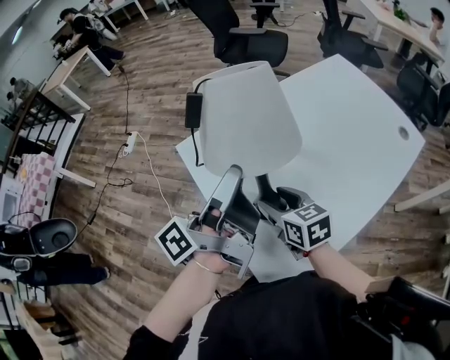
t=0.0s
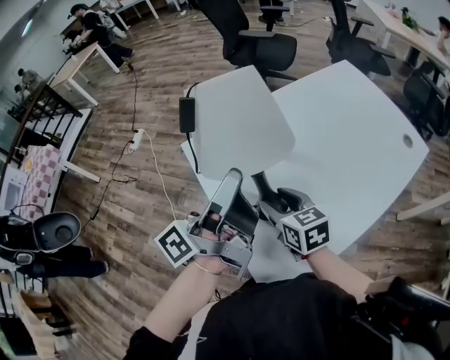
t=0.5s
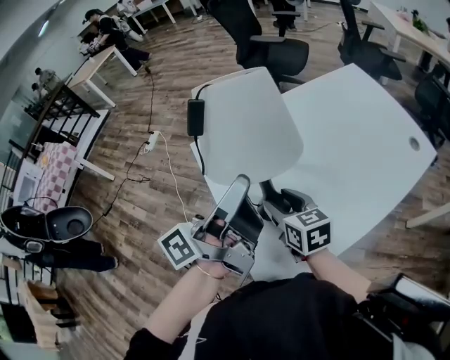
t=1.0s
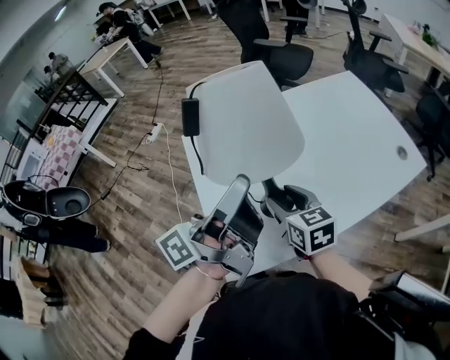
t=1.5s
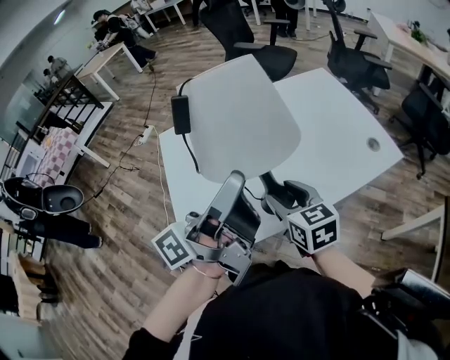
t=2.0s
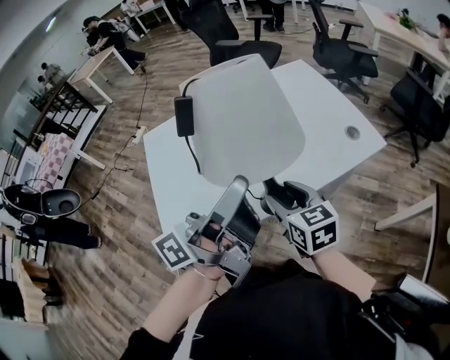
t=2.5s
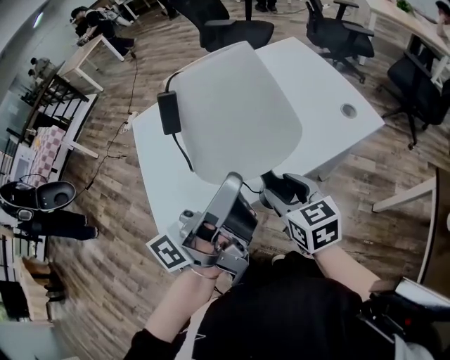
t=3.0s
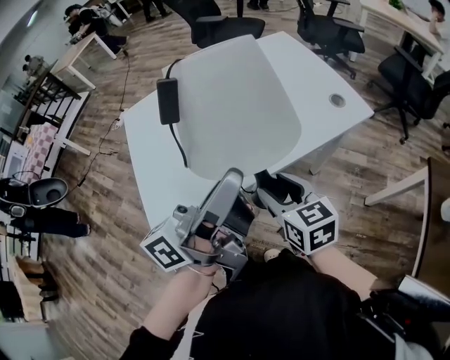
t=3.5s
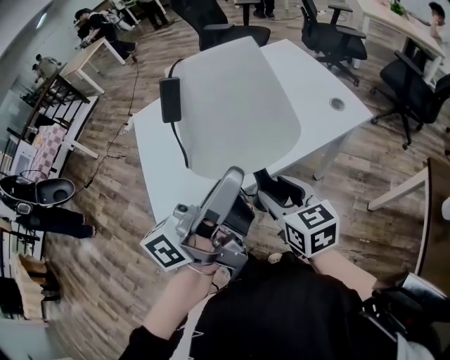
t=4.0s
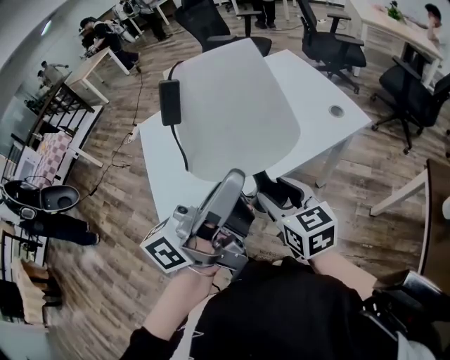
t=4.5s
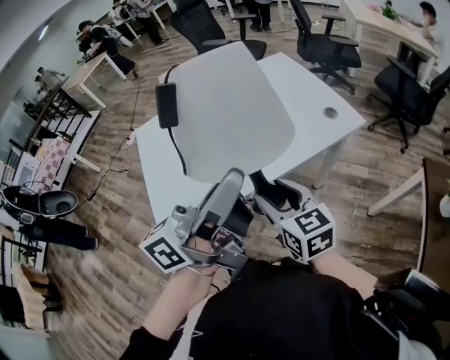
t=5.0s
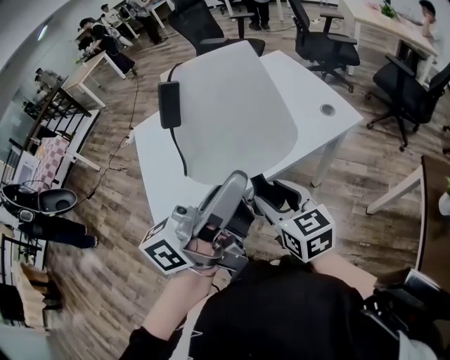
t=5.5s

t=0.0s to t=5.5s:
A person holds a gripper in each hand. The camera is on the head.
t=0.0s to t=2.0s: The right gripper heads to the right, covering roughly 25 cm. Meanwhile the left gripper heads to the right and backward, covering about 25 cm.
t=2.0s to t=3.5s: The two grippers go approximately 15 cm to the right and backward.
t=3.5s to t=5.5s: The right gripper changes place by approximately 5 cm. The left gripper changes place by about 5 cm.

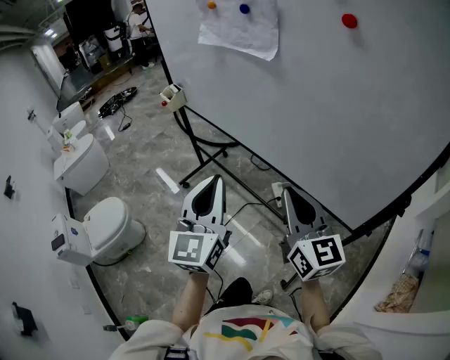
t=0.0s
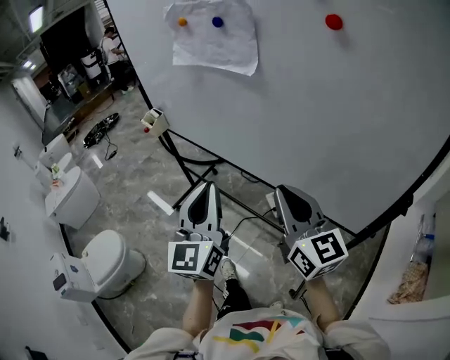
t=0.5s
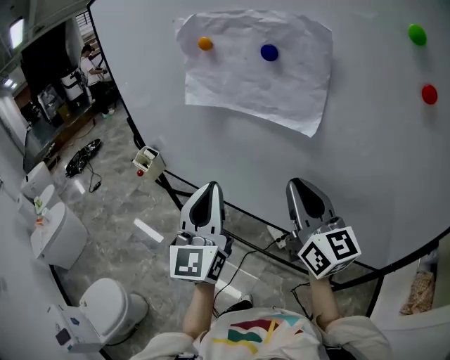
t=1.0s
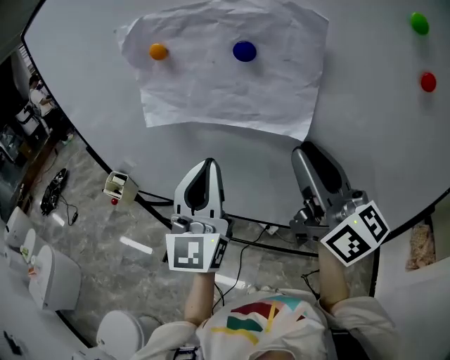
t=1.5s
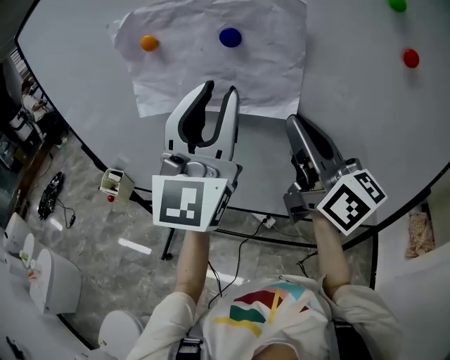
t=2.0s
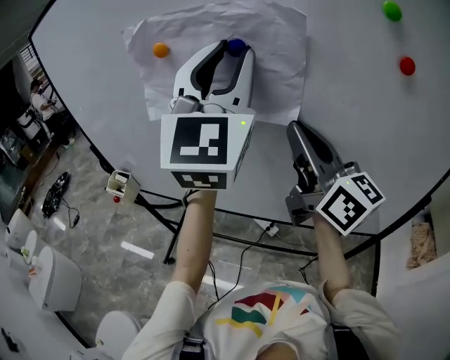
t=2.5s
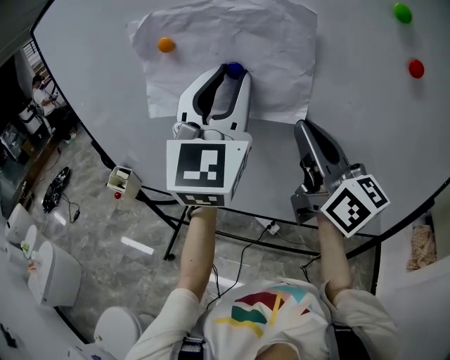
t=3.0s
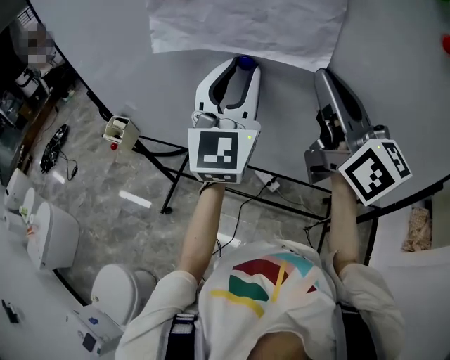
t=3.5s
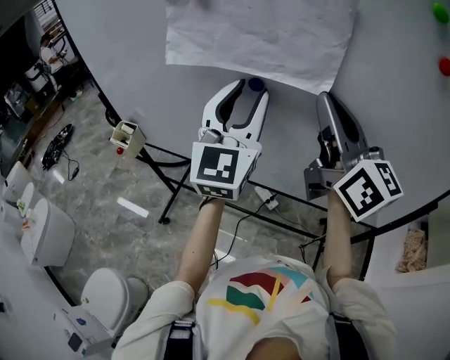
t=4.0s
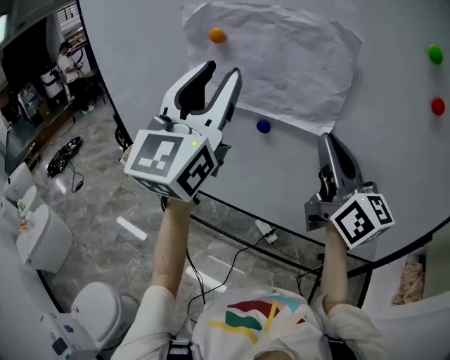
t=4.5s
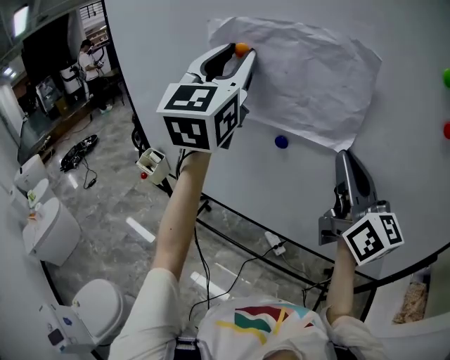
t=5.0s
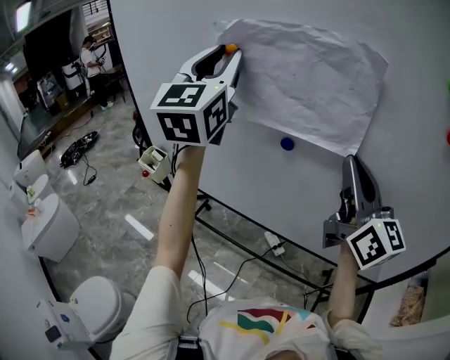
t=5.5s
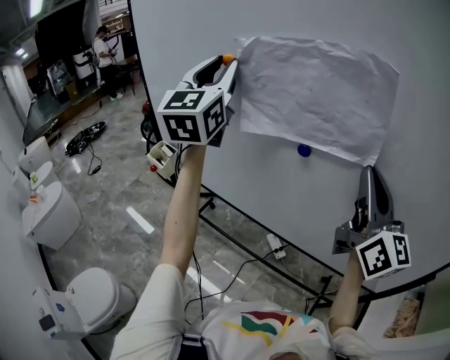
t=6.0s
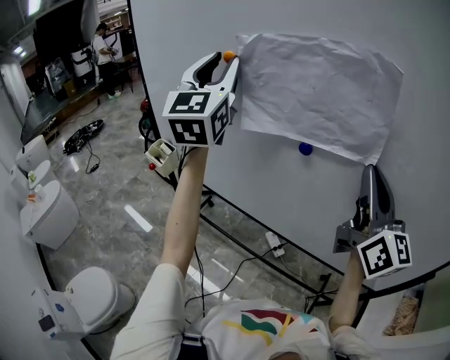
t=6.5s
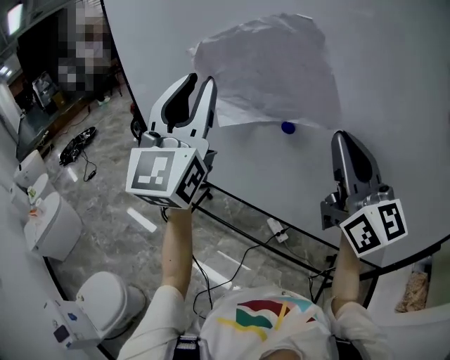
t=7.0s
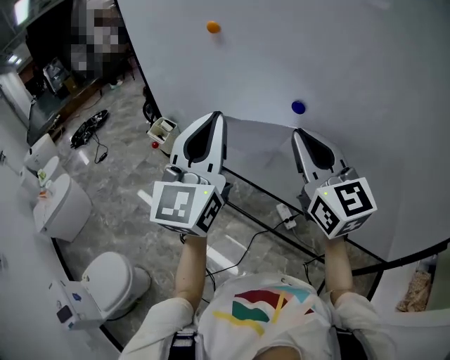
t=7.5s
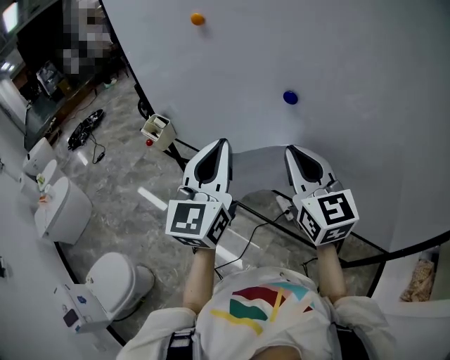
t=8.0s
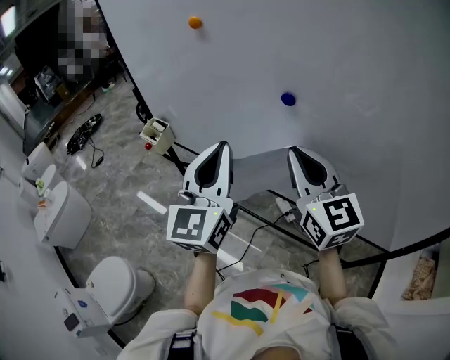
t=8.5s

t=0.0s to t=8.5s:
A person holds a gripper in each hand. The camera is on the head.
t=0.0s to t=2.0s: The right gripper changes place by approximately 35 cm, and changes its angle by approximately 30 degrees. The left gripper ends up approximately 35 cm from where it was, changes its angle by about 50 degrees, and opens its fingers.
t=2.0s to t=4.0s: The left gripper moves downward, some 10 cm.
t=4.0s to t=6.5s: The left gripper travels to the left, upward and forward by about 25 cm.
t=6.5s to t=8.5s: The left gripper travels downward and backward by approximately 25 cm, and closes; the right gripper goes about 15 cm downward and to the left, and changes its angle by about 20 degrees.

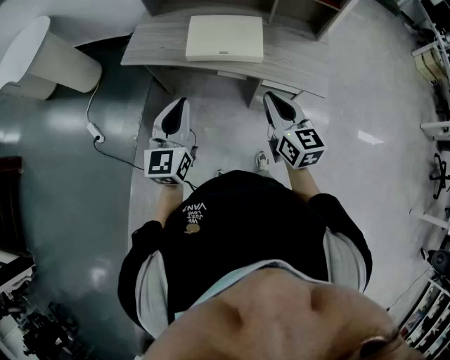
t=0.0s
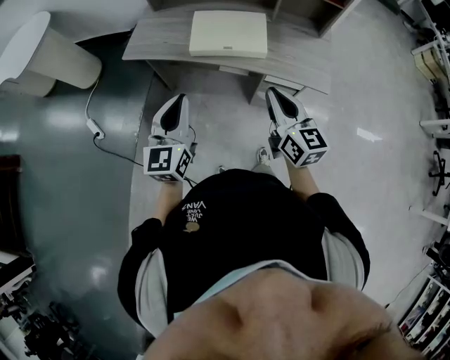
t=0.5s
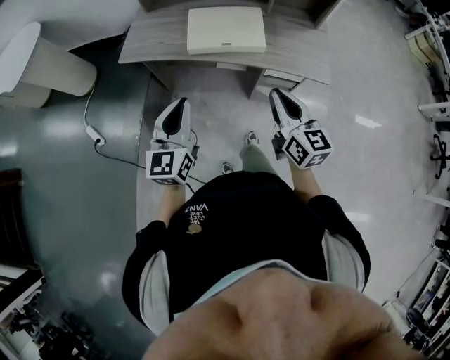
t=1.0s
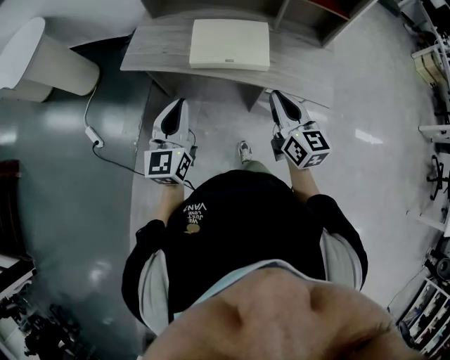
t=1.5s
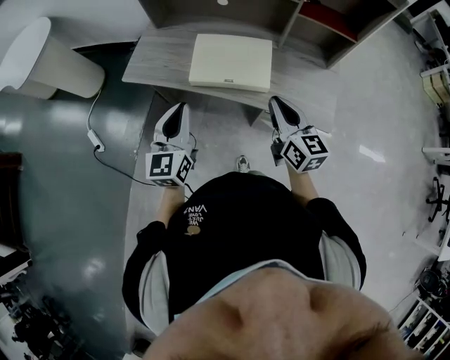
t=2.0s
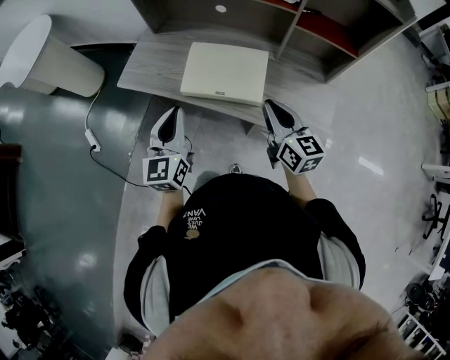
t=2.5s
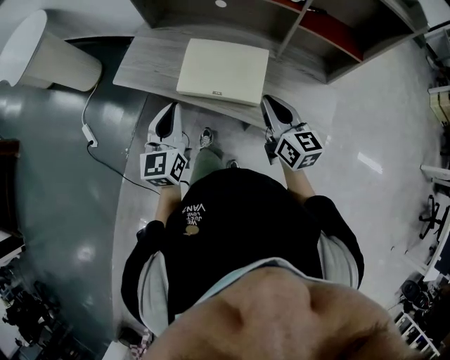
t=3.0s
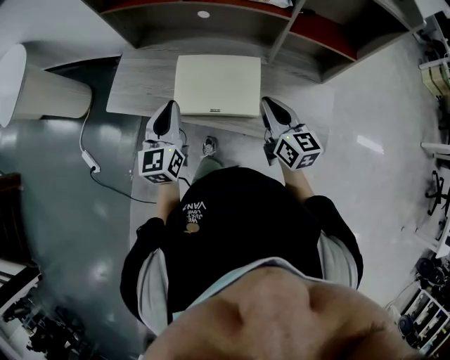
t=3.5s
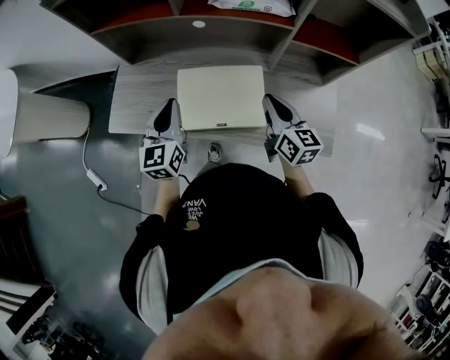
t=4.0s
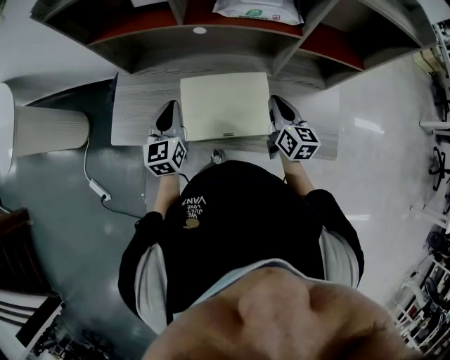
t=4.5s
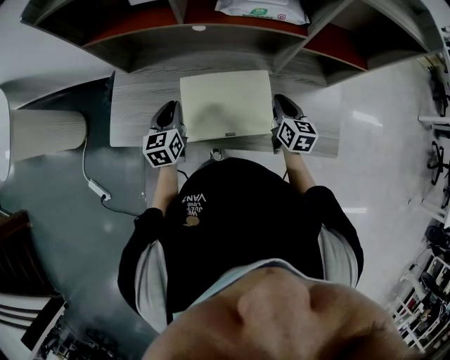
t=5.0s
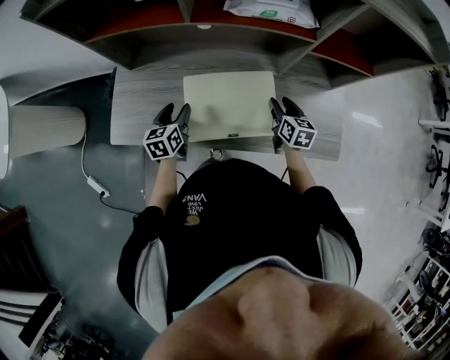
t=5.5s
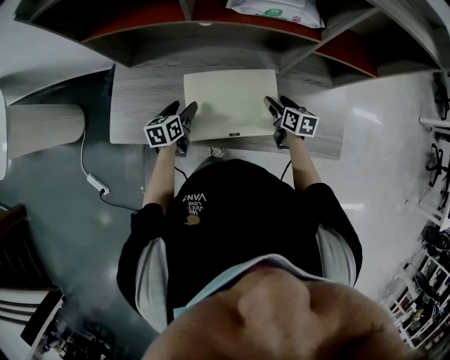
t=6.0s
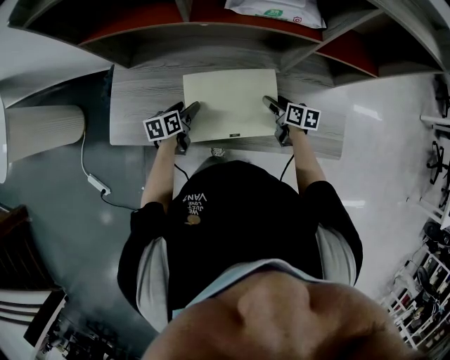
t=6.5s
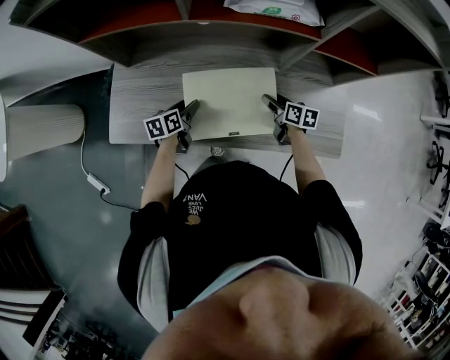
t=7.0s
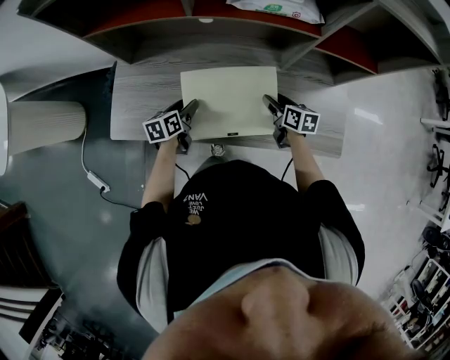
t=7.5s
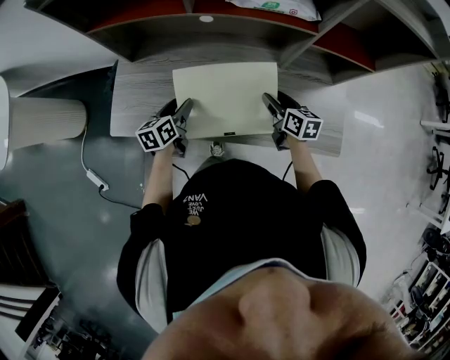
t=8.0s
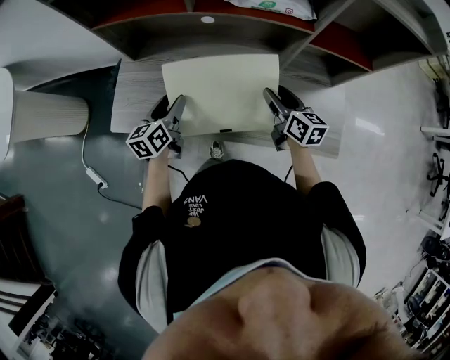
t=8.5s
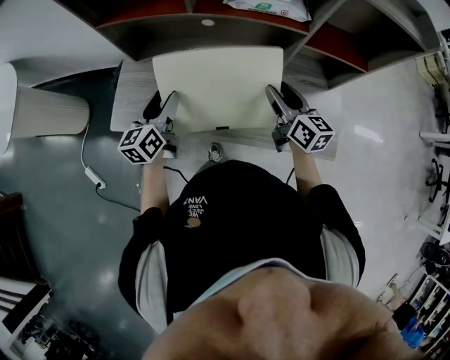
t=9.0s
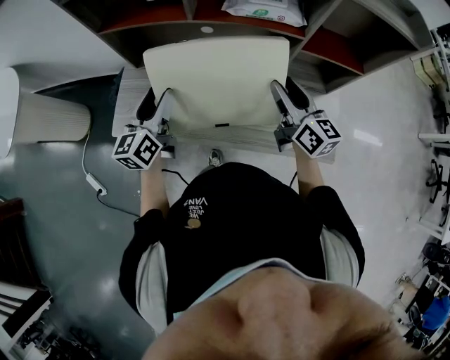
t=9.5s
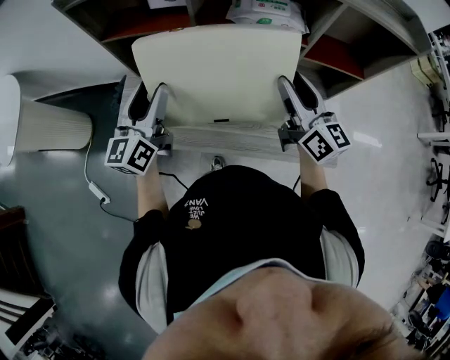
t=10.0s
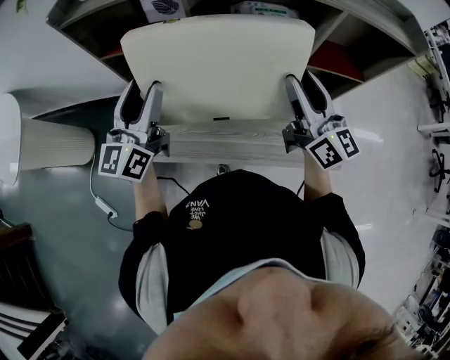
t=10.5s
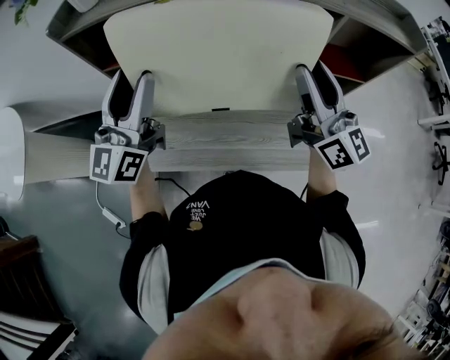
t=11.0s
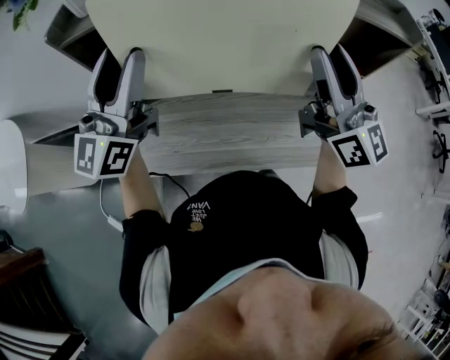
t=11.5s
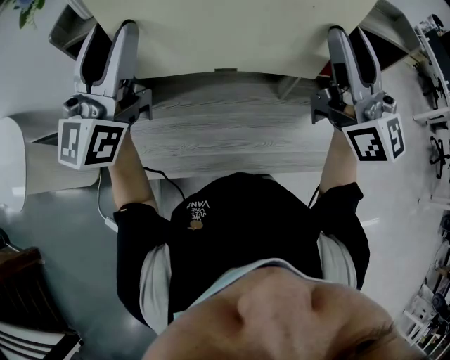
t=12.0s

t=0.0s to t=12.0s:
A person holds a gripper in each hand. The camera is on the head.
t=0.0s to t=2.0s: The two grippers go approximately 10 cm forward.
t=2.0s to t=4.0s: Both grippers move forward, roughly 20 cm.
t=4.0s to t=6.0s: The two grippers go some 20 cm downward. The left gripper swivels approximately 40 degrees, and opens its fingers. Meanwhile the right gripper turns by roughly 30 degrees, and opens.
t=6.0s to t=8.0s: The right gripper moves upward, roughly 5 cm. The left gripper ends up approximately 5 cm from where it was.
t=8.0s to t=10.0s: Both grippers travel together upward, some 25 cm. The right gripper tilts its fingers about 40 degrees upward. Meanwhile the left gripper tips its fingers upward by about 40 degrees.
t=10.0s to t=12.0s: The grippers both shift upward by some 25 cm. The right gripper swivels some 30 degrees. Meanwhile the left gripper swivels about 30 degrees.

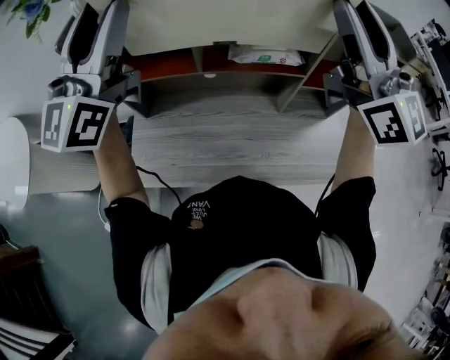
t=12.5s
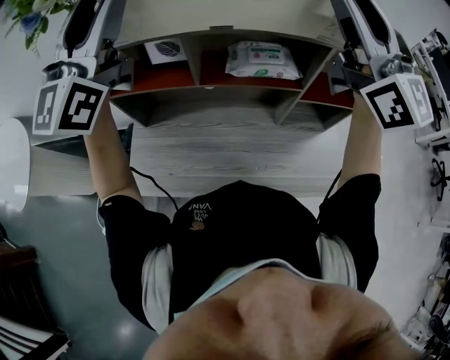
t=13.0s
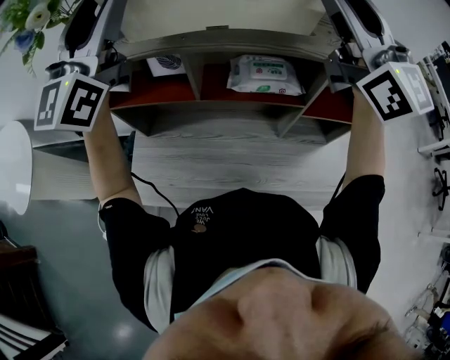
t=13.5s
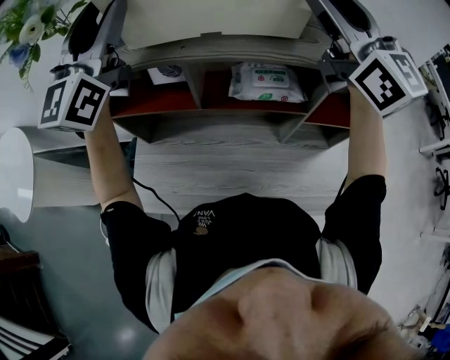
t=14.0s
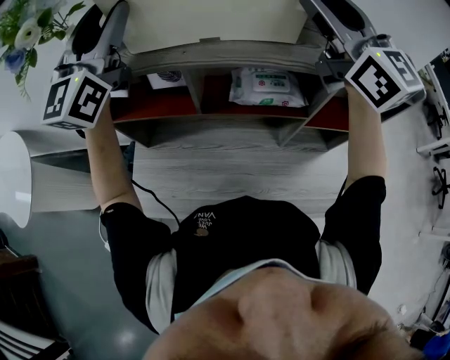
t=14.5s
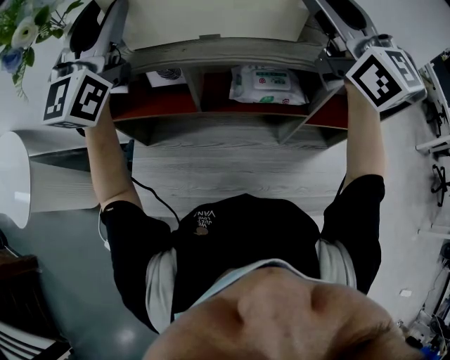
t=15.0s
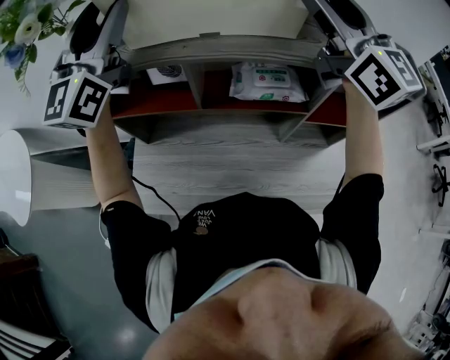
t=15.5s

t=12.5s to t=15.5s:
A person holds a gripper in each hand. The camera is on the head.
t=12.5s to t=14.0s: The two grippers go approximately 10 cm forward.
t=14.0s to t=15.5s: The grippers stay close to where they were, moving slightly.
